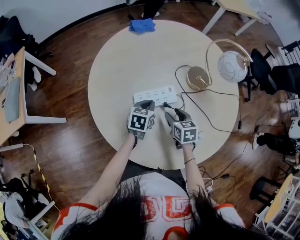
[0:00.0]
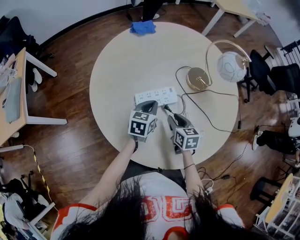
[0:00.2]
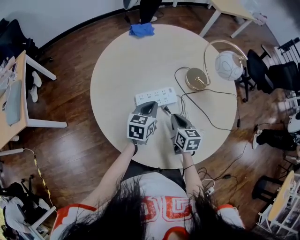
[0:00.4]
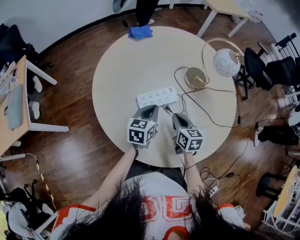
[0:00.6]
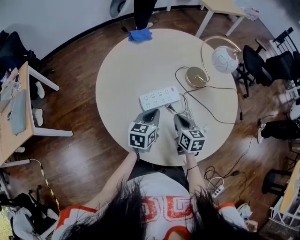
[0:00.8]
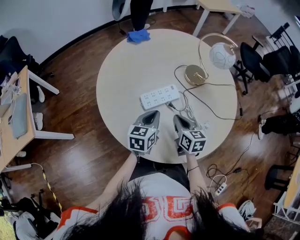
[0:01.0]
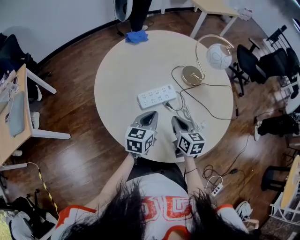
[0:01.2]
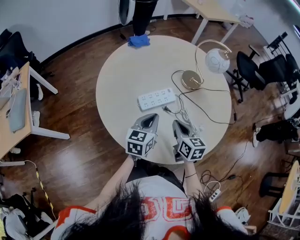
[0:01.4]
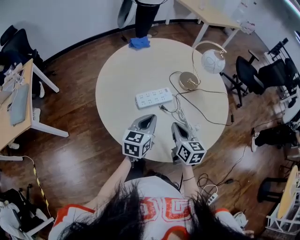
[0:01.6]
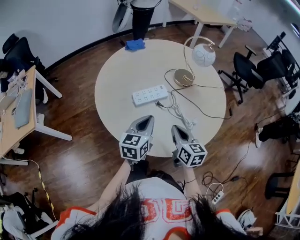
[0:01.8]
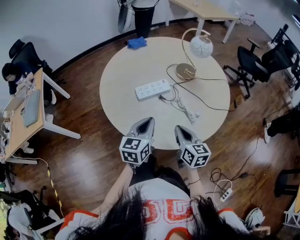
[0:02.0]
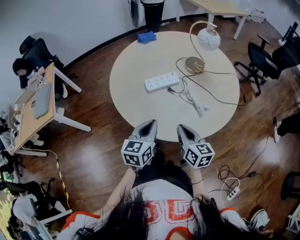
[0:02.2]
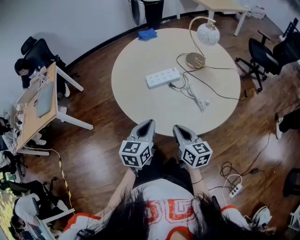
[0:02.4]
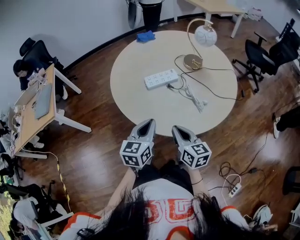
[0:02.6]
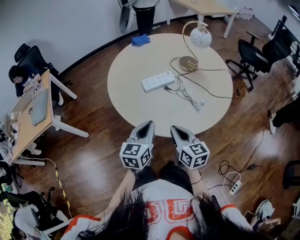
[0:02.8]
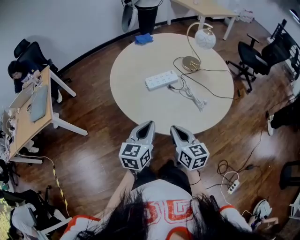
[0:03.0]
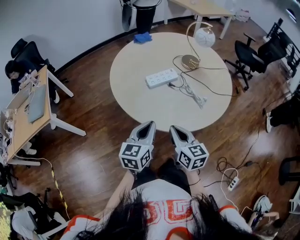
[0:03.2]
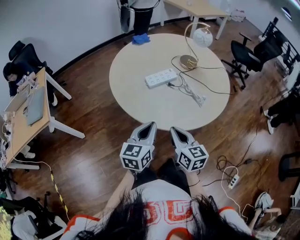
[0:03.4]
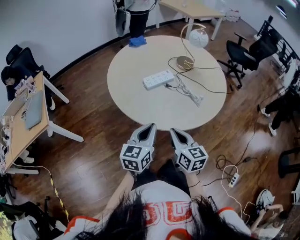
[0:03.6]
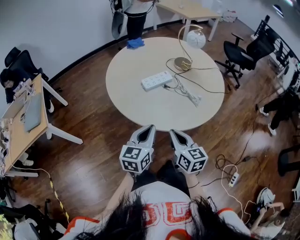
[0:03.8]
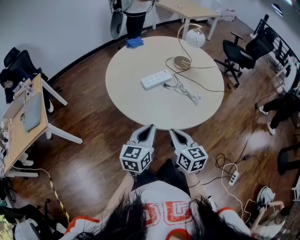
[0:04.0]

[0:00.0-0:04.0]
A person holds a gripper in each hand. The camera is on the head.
0:00.0 to 0:01.4: Both grippers move upward and backward, about 15 cm. The right gripper turns by some 20 degrees, and closes its fingers, while the left gripper changes its angle by roughly 20 degrees.
0:01.4 to 0:02.6: Both grippers move backward, about 15 cm.
0:02.6 to 0:04.0: The grippers both shift backward by roughly 5 cm.

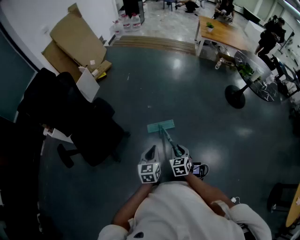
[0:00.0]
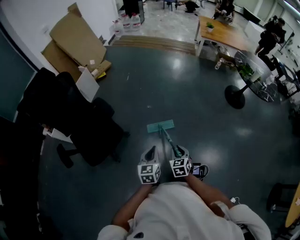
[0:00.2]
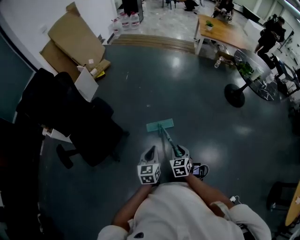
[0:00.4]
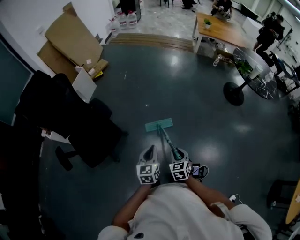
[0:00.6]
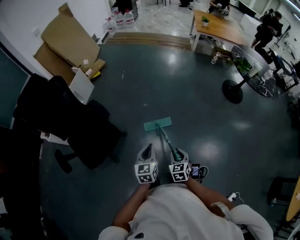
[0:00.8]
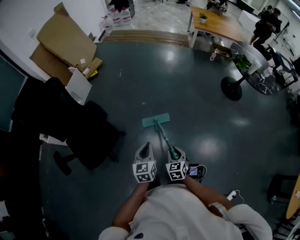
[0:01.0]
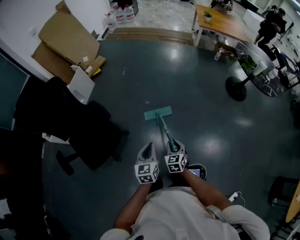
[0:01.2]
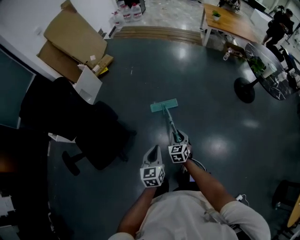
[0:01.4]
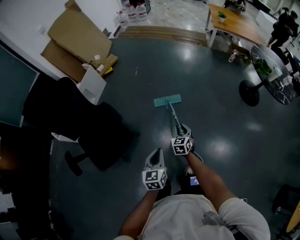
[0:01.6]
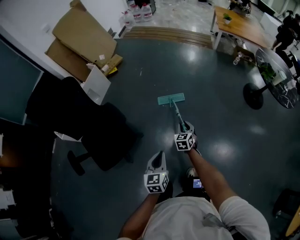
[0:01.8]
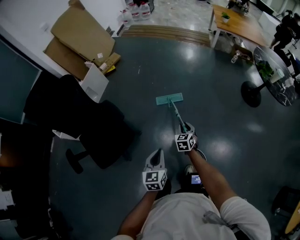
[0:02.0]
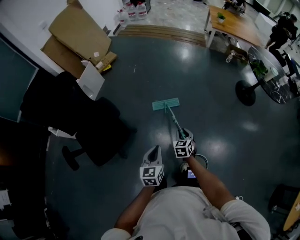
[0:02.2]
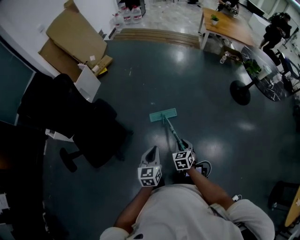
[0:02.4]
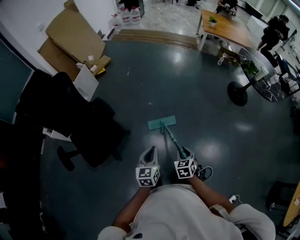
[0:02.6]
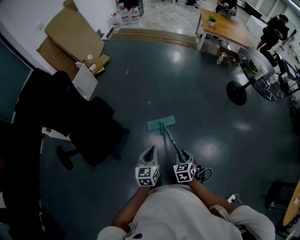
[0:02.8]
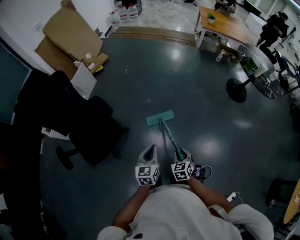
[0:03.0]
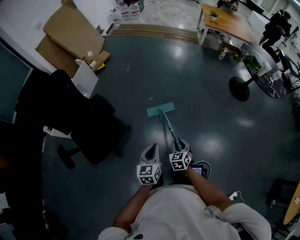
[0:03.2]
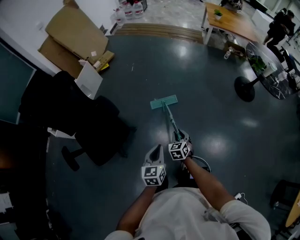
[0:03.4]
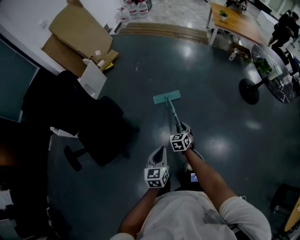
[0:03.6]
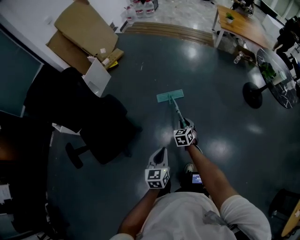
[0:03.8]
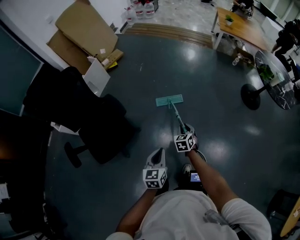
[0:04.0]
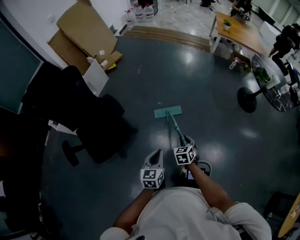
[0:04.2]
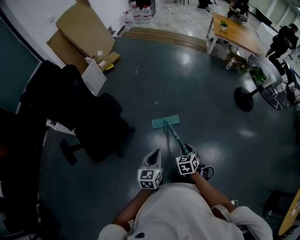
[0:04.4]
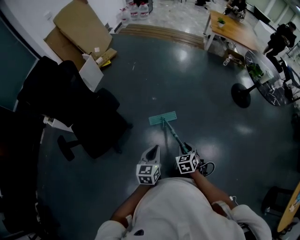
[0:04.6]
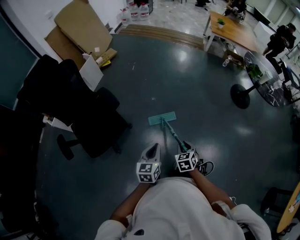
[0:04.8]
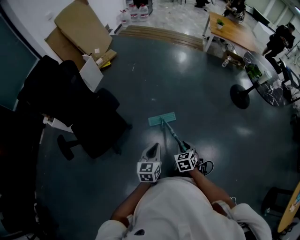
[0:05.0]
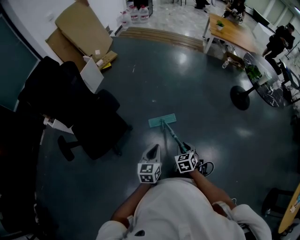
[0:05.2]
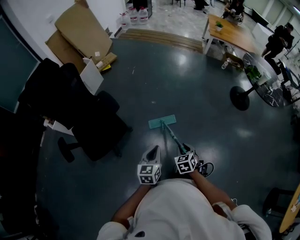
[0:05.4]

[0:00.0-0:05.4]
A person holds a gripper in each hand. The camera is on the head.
0:00.0 to 0:01.4: The left gripper moves forward, approximately 5 cm, while the right gripper goes about 15 cm forward.
0:01.4 to 0:02.8: The right gripper goes approximately 15 cm backward.
0:02.8 to 0:04.0: The right gripper goes some 20 cm forward.
0:04.0 to 0:05.4: The right gripper shifts some 15 cm backward. Meanwhile the left gripper shifts by approximately 5 cm.

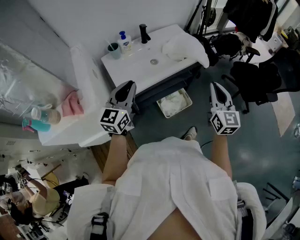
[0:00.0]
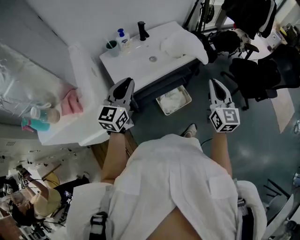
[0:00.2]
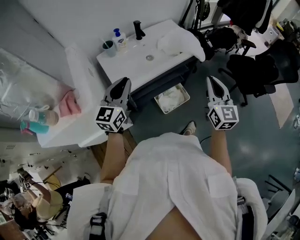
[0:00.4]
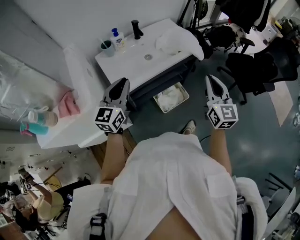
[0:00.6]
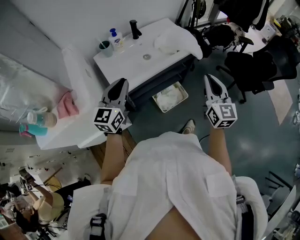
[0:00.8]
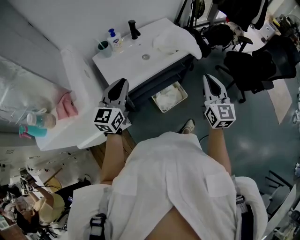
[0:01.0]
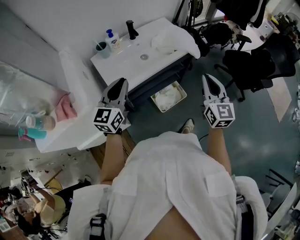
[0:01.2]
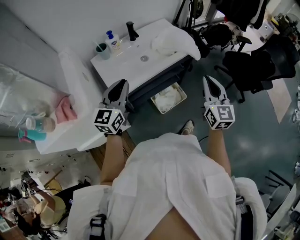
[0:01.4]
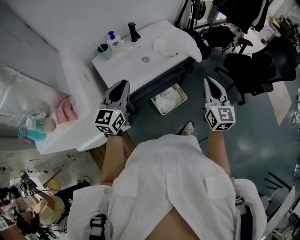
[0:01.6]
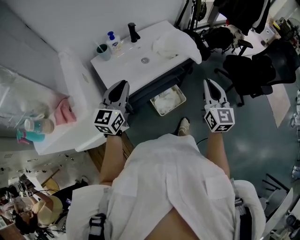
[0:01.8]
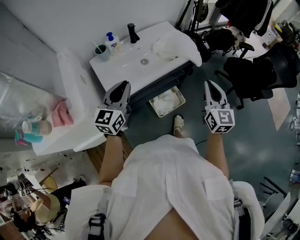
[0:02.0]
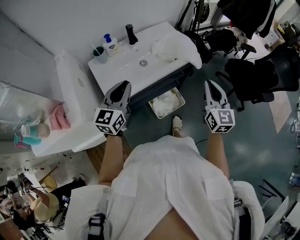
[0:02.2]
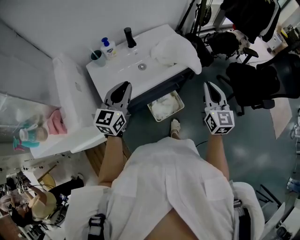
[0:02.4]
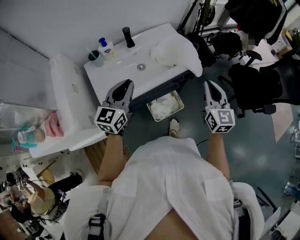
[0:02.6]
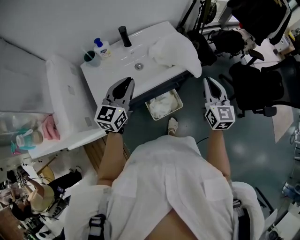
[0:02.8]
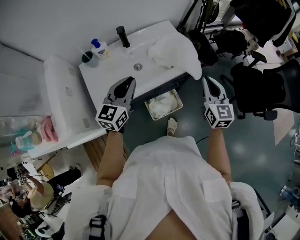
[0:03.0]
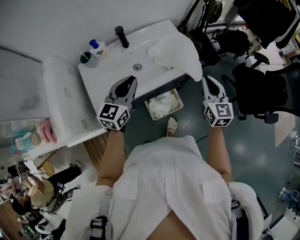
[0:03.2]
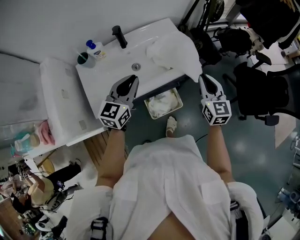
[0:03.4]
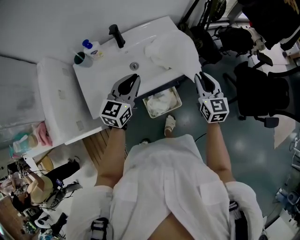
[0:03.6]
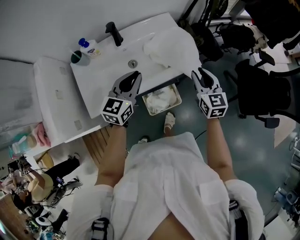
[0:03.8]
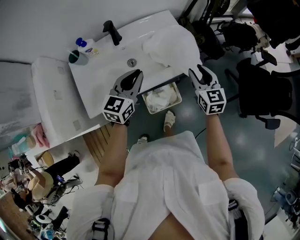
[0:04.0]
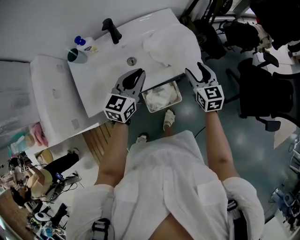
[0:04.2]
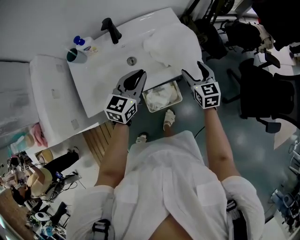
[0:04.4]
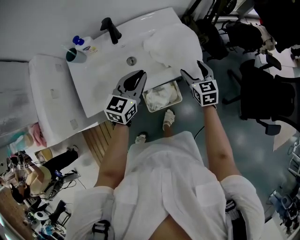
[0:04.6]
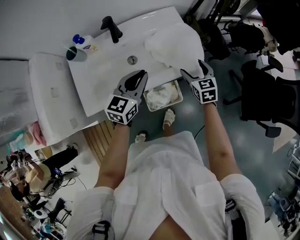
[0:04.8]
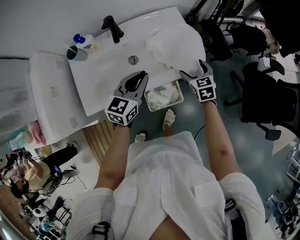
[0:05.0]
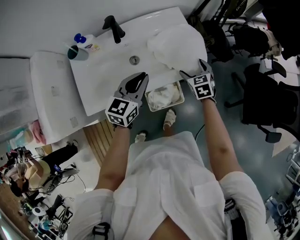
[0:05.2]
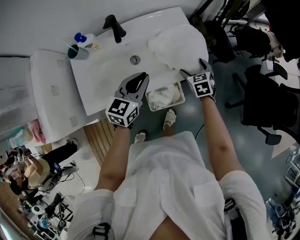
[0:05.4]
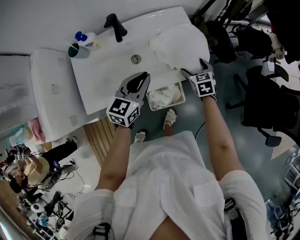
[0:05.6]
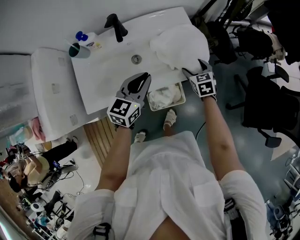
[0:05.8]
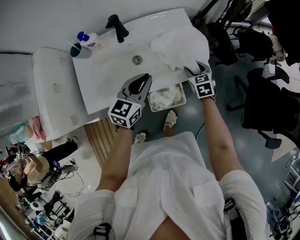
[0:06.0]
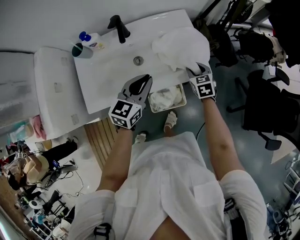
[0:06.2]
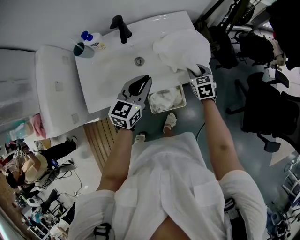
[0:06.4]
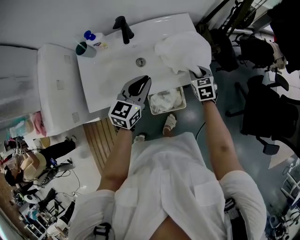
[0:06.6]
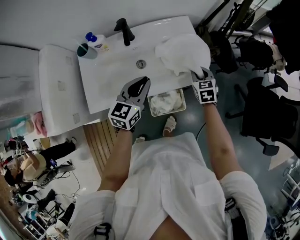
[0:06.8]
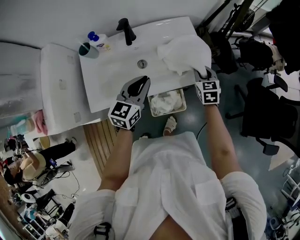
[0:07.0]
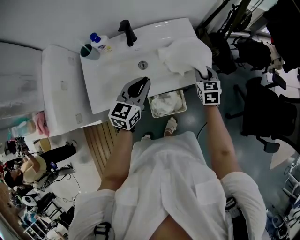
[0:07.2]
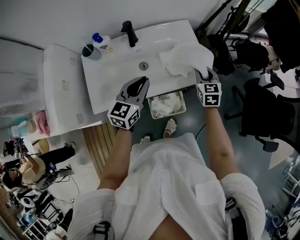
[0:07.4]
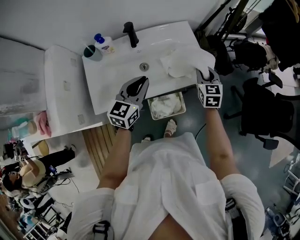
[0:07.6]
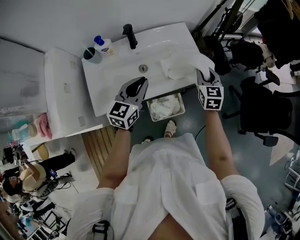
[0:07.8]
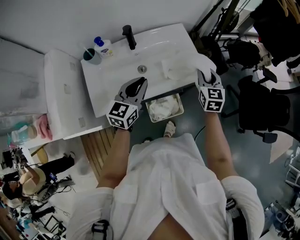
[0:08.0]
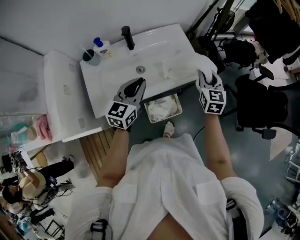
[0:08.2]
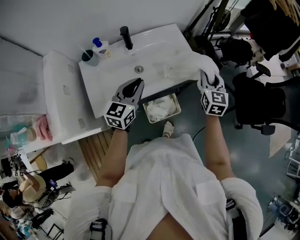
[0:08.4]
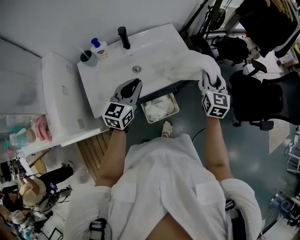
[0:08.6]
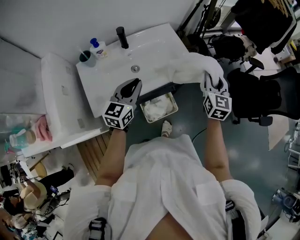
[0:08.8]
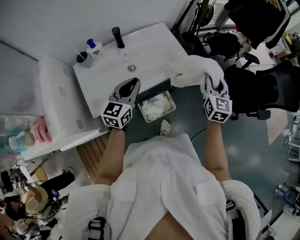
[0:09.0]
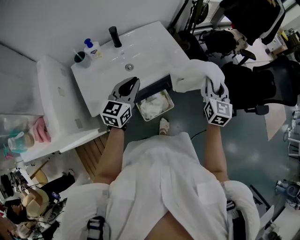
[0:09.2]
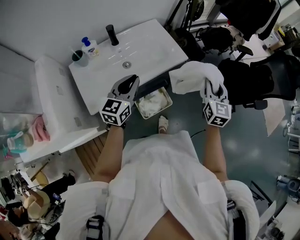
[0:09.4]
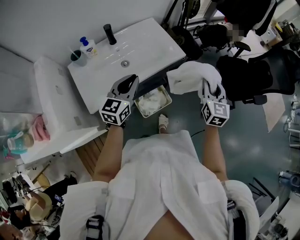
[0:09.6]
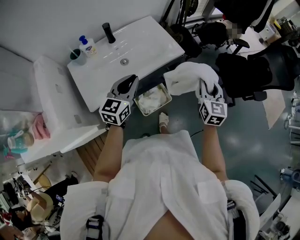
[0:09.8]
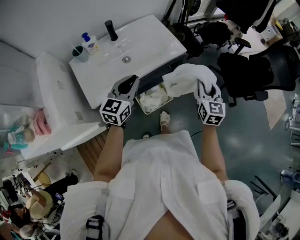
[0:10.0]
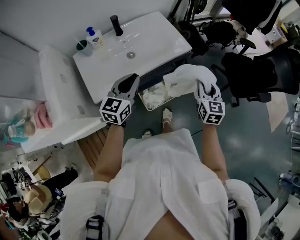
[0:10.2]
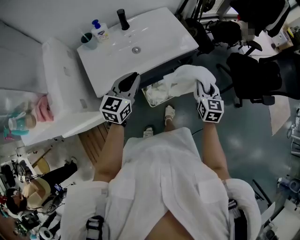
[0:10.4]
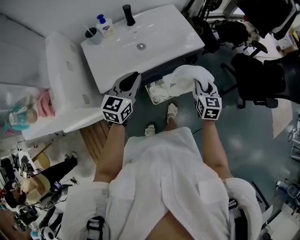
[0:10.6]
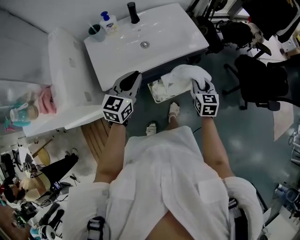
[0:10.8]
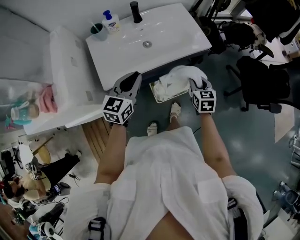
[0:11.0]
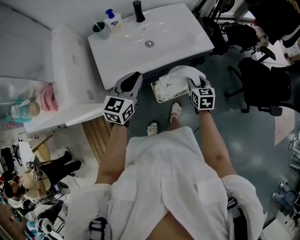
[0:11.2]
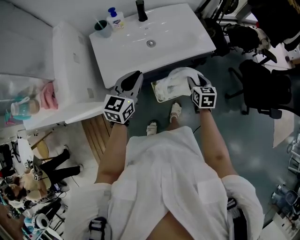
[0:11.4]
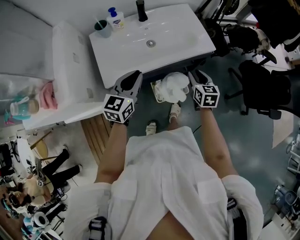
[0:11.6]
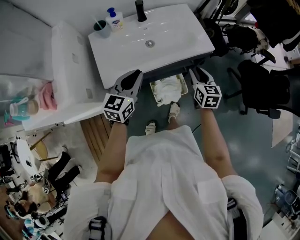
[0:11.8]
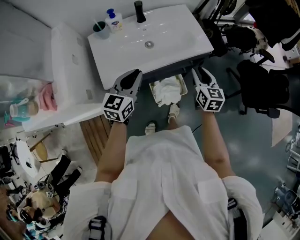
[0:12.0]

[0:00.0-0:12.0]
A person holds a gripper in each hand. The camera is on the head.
0:00.0 to 0:01.6: The two grippers keep their place.
0:01.6 to 0:03.0: The left gripper travels forward and to the right by roughly 20 cm, while the right gripper goes roughly 20 cm forward.
0:03.0 to 0:04.4: The right gripper is displaced downward and forward by some 20 cm, changes its angle by some 20 degrees, and opens up; the left gripper goes about 15 cm forward, downward and to the right.
0:04.4 to 0:06.0: The right gripper shifts roughly 10 cm downward and forward.
0:06.0 to 0:07.6: The right gripper travels upward by approximately 15 cm, and rotates roughly 20 degrees. Meanwhile the left gripper shifts about 5 cm to the left.
0:07.6 to 0:09.0: The left gripper heads backward, covering some 5 cm. Meanwhile the right gripper goes approximately 20 cm backward, upward and to the right, and swivels some 30 degrees.
0:09.0 to 0:10.4: The left gripper is displaced backward by roughly 10 cm. The right gripper travels backward and downward by some 15 cm.
0:10.4 to 0:12.0: The right gripper is displaced to the left and forward by about 10 cm, and moves about 10 cm downward and comes back.

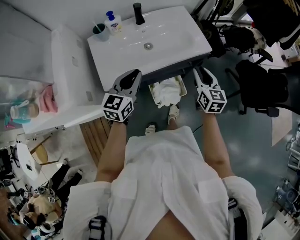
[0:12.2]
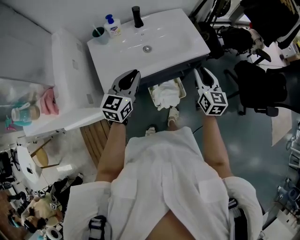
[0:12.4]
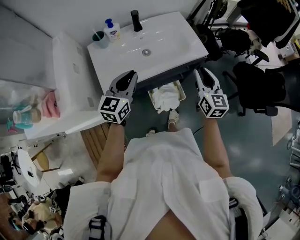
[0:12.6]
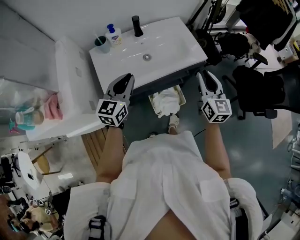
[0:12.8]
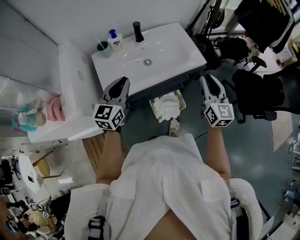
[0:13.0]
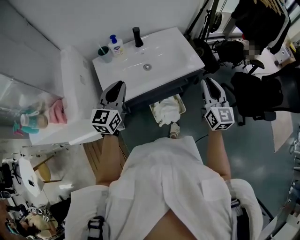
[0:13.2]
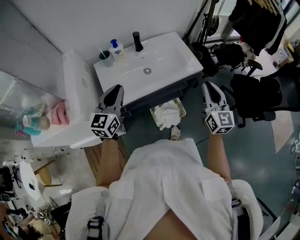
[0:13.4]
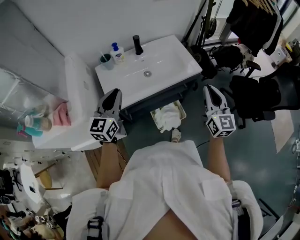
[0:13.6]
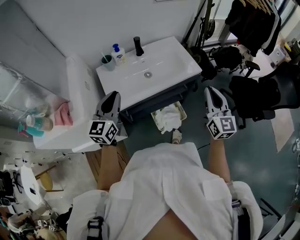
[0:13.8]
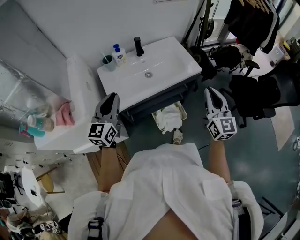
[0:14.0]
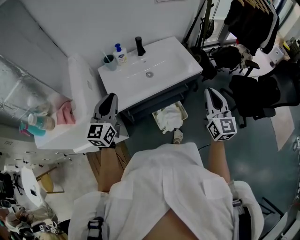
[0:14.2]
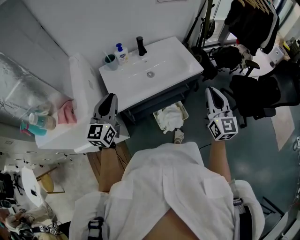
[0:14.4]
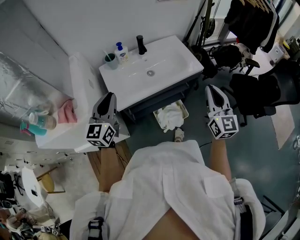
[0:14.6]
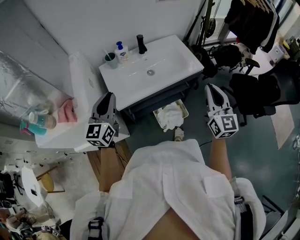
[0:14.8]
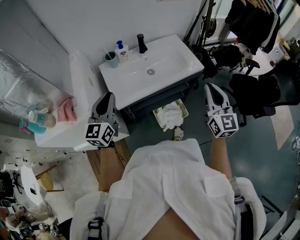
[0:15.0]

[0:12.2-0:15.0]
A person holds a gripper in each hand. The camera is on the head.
0:12.2 to 0:13.6: The left gripper is displaced upward and to the left by some 15 cm. The right gripper moves upward and backward, approximately 20 cm, and swivels about 20 degrees.
0:13.6 to 0:15.0: The left gripper heads to the left, covering about 5 cm. The right gripper ends up approximately 5 cm from where it was.
